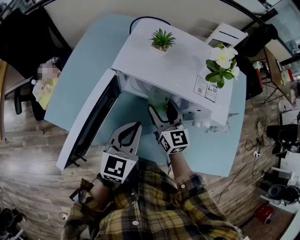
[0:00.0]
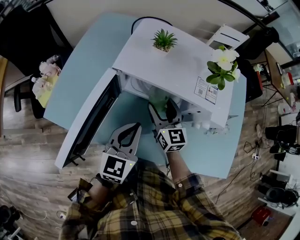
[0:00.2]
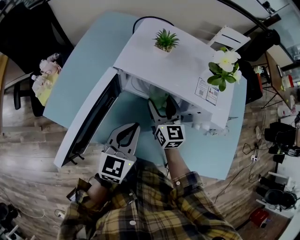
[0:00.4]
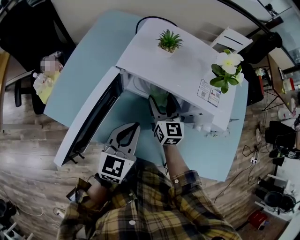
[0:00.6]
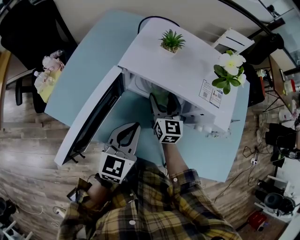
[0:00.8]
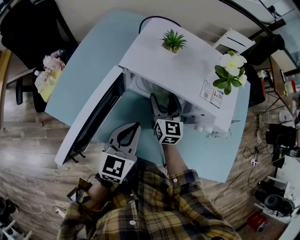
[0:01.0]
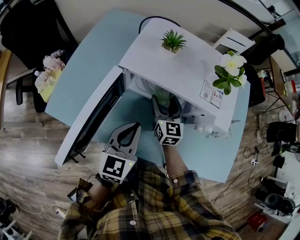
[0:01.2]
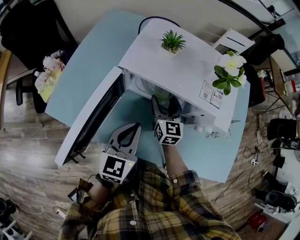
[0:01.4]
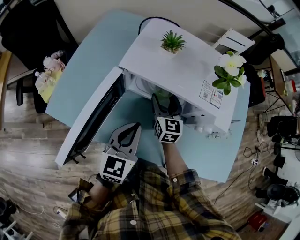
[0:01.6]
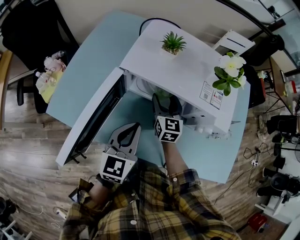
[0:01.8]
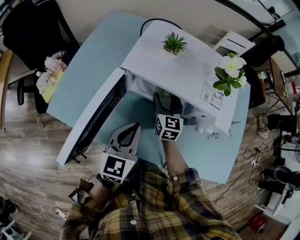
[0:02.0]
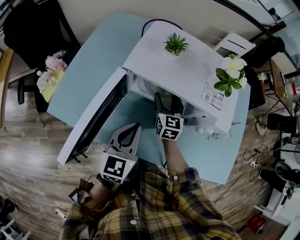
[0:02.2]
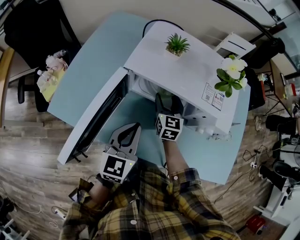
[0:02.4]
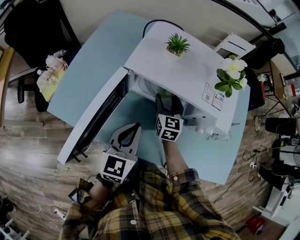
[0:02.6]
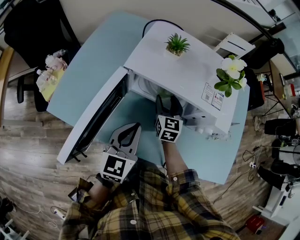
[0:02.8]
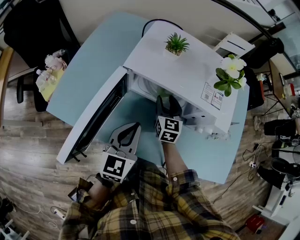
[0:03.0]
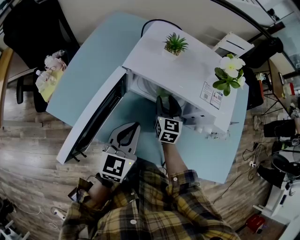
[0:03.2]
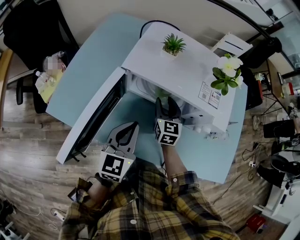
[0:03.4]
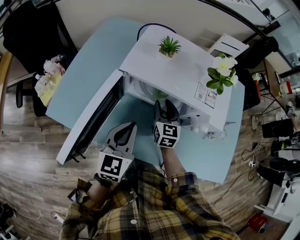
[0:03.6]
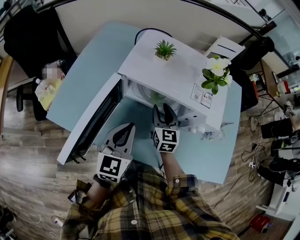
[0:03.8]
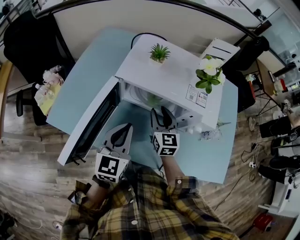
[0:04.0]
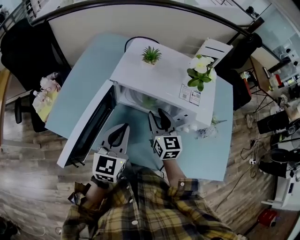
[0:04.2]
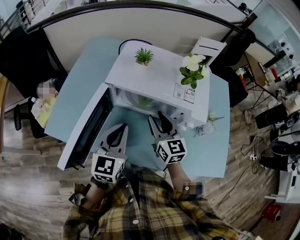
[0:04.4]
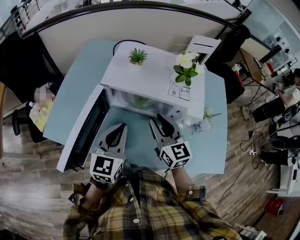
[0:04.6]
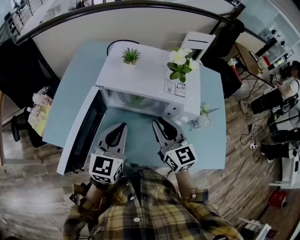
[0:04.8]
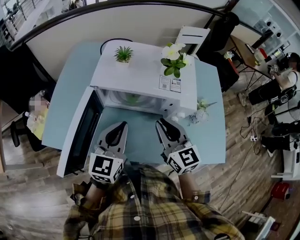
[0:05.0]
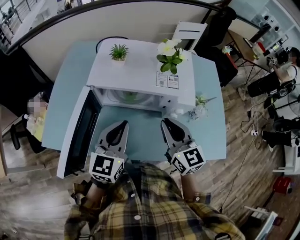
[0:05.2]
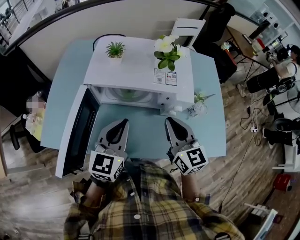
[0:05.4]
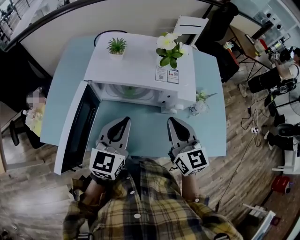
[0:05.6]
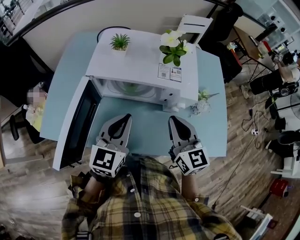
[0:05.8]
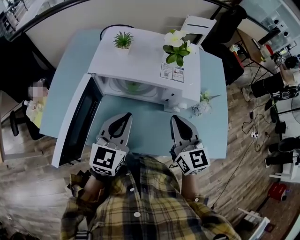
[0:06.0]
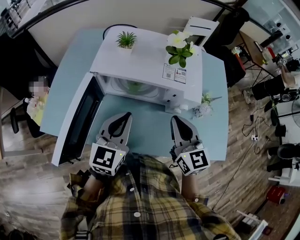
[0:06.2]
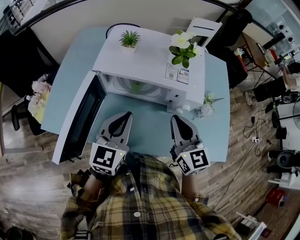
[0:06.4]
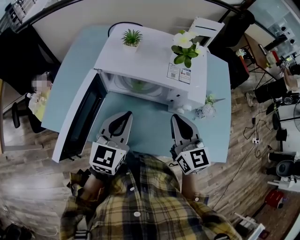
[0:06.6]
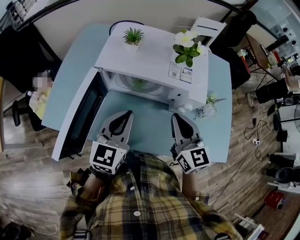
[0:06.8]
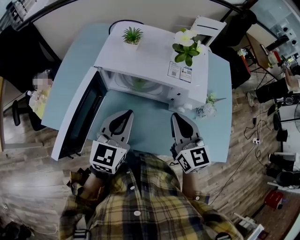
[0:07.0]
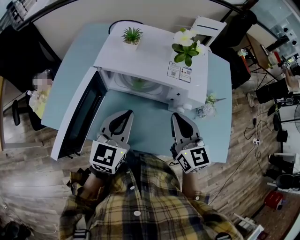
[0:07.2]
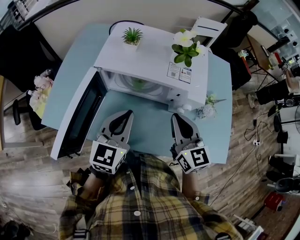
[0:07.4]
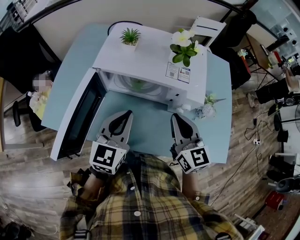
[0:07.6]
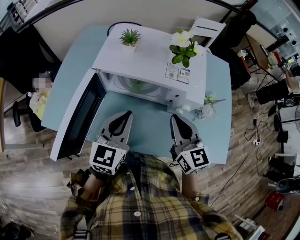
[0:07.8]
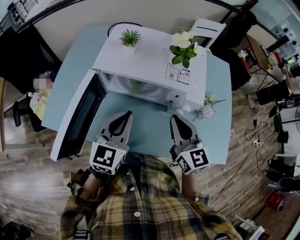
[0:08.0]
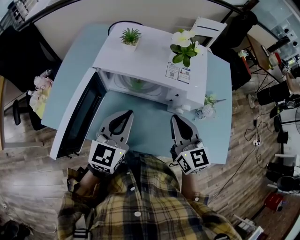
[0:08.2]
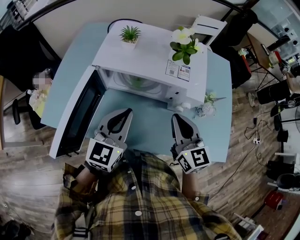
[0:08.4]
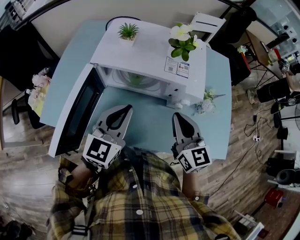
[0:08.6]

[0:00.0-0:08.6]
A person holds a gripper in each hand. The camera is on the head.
0:00.0 to 0:01.4: The right gripper ends up roughly 5 cm from where it was.
0:01.4 to 0:02.8: There are only small adjustments of the grippers.
0:02.8 to 0:04.4: The left gripper shifts roughly 5 cm upward. Meanwhile the right gripper goes roughly 15 cm upward and backward.
0:04.4 to 0:05.8: The left gripper shifts some 5 cm to the right, while the right gripper travels to the right, backward and upward by approximately 15 cm, and closes up.
0:05.8 to 0:08.6: The grippers make only small movements.

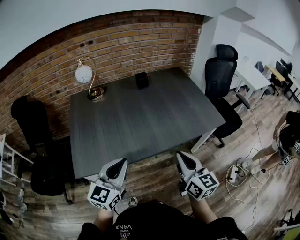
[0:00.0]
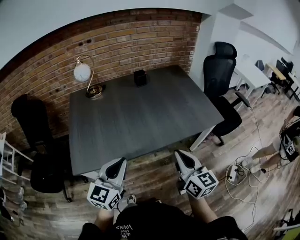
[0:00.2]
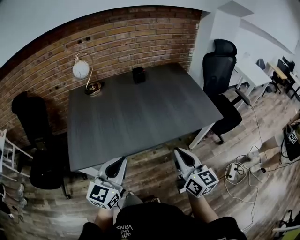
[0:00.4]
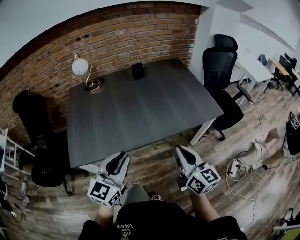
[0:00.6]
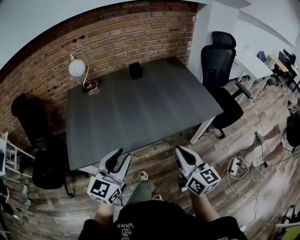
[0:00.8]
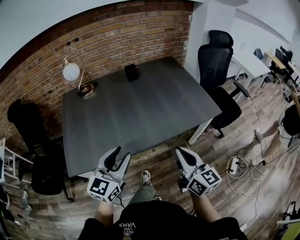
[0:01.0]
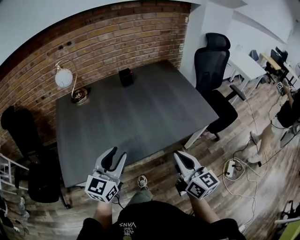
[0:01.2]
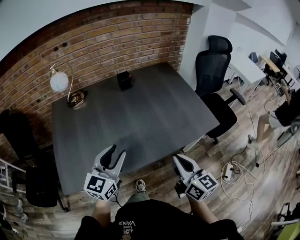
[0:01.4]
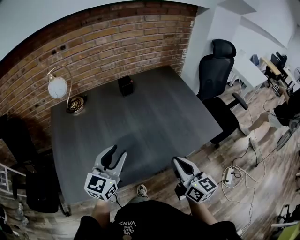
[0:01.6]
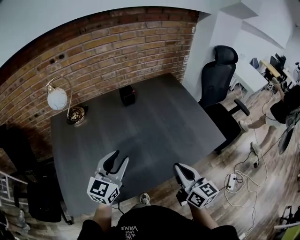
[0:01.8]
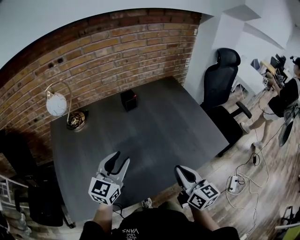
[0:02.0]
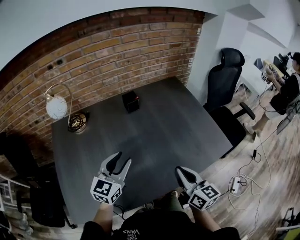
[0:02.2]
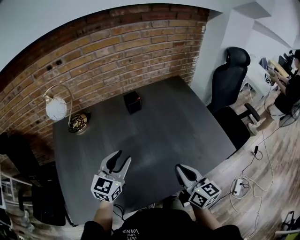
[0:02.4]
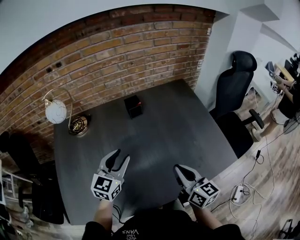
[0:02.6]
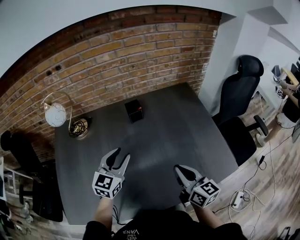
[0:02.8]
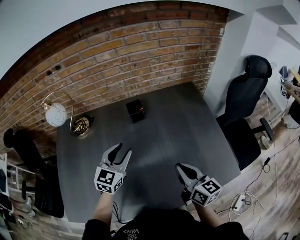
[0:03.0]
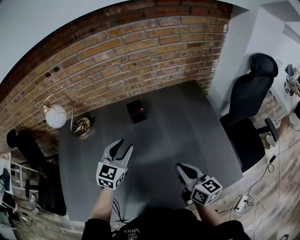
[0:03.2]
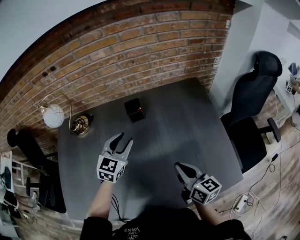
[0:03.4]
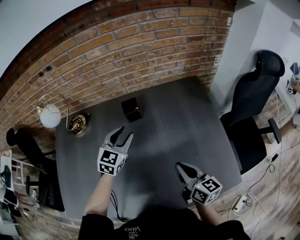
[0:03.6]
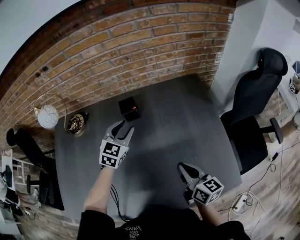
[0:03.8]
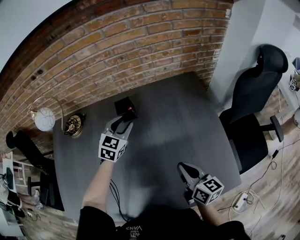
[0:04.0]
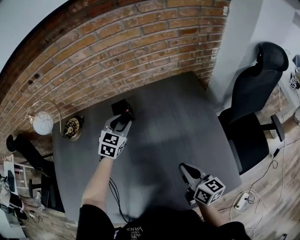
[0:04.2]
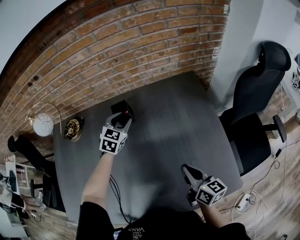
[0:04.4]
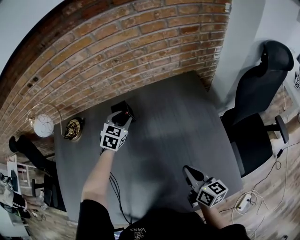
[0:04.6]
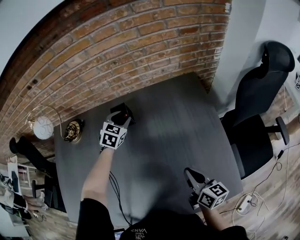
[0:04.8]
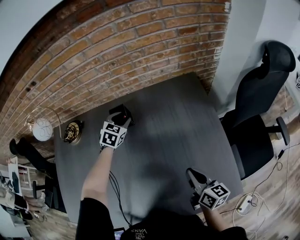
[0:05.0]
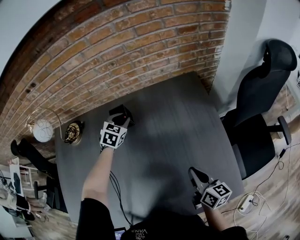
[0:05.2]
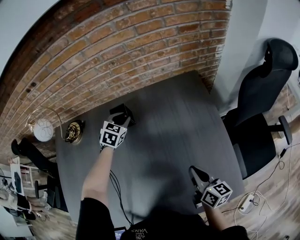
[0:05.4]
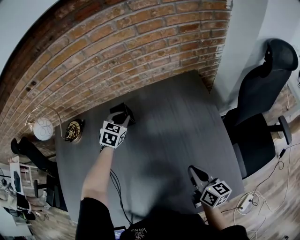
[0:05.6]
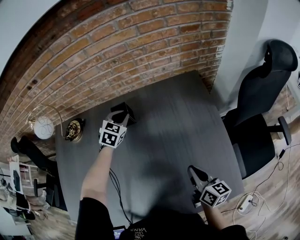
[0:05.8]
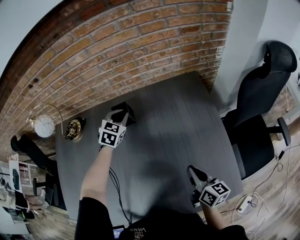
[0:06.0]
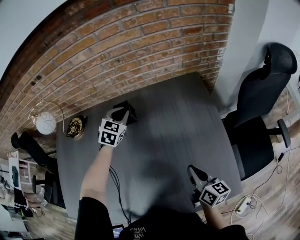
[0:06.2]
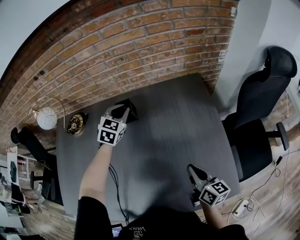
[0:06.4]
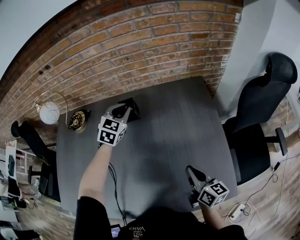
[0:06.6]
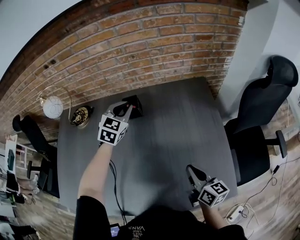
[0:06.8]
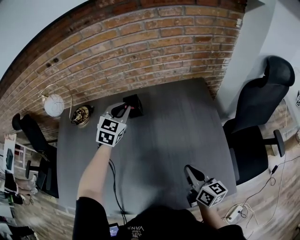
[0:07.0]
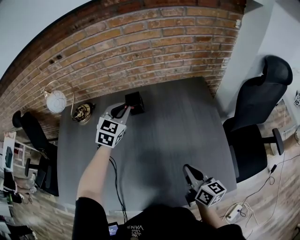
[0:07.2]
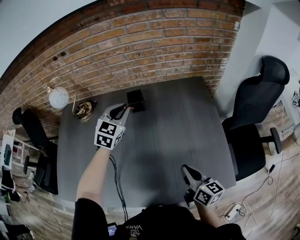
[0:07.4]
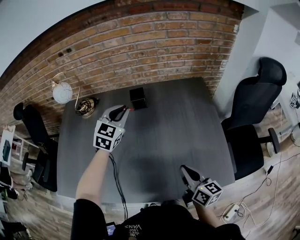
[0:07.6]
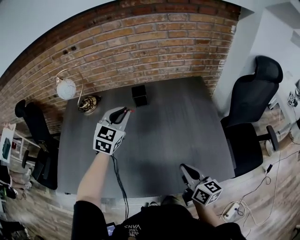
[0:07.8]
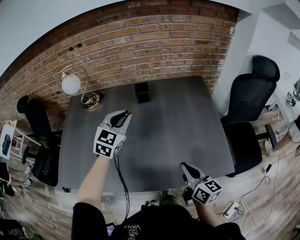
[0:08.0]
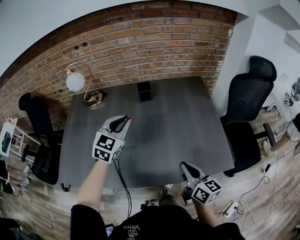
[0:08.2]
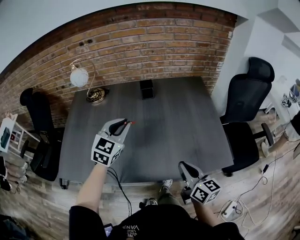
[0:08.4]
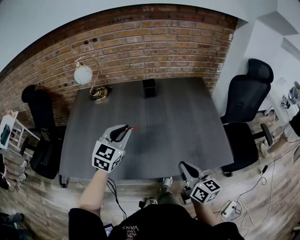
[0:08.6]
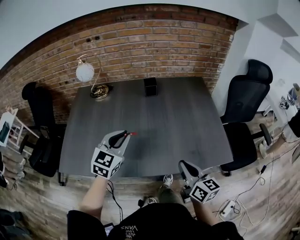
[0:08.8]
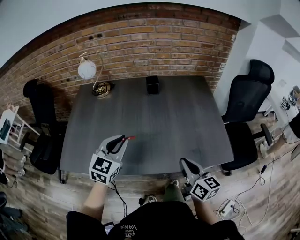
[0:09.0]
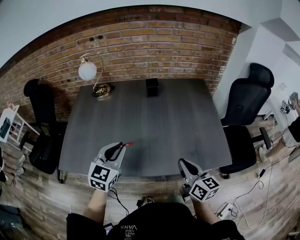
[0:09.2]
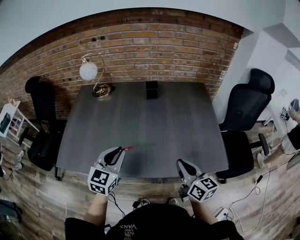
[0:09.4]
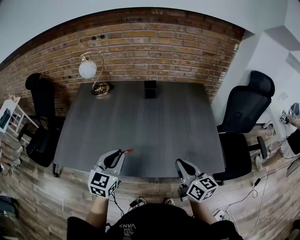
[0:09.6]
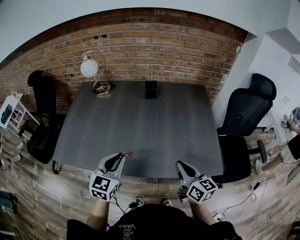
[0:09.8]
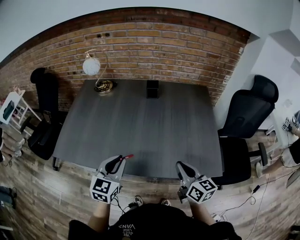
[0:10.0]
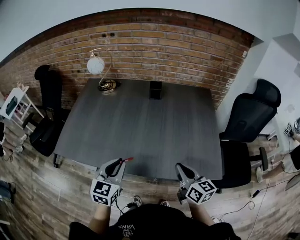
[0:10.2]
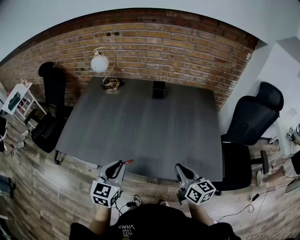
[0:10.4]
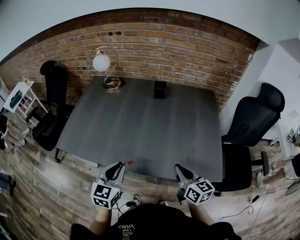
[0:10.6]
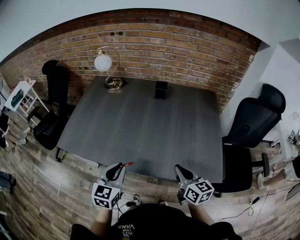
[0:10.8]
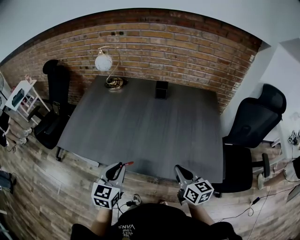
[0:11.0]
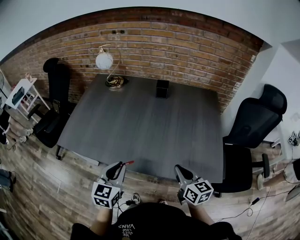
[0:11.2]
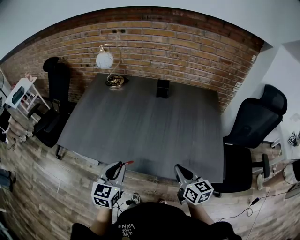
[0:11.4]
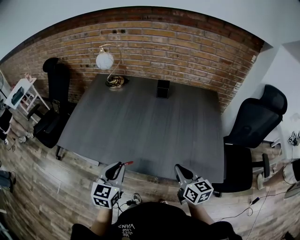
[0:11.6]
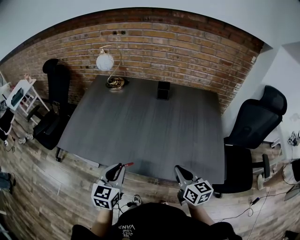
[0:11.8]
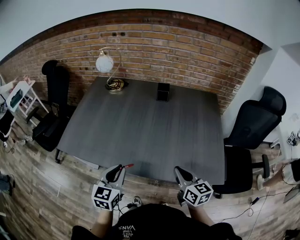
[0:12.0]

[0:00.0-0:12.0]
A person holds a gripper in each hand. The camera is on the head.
0:00.0 to 0:01.6: The left gripper travels forward by roughly 20 cm, and opens; the right gripper is displaced forward by some 15 cm.
0:01.6 to 0:03.0: The grippers both shift forward by roughly 25 cm.
0:03.0 to 0:04.4: The left gripper travels forward, downward and to the right by roughly 25 cm, and turns by about 20 degrees, while the right gripper is displaced to the right, downward and forward by approximately 15 cm.
0:04.4 to 0:06.0: There are only small adjustments of the grippers.
0:06.0 to 0:07.6: The right gripper moves backward, to the left and upward, approximately 15 cm; the left gripper is displaced backward and upward by roughly 20 cm.
0:07.6 to 0:09.0: The right gripper shifts about 15 cm backward and to the left, while the left gripper goes roughly 30 cm backward.
0:09.0 to 0:10.4: The right gripper goes some 5 cm to the right, while the left gripper goes some 10 cm backward, and turns by roughly 20 degrees.
0:10.4 to 0:12.0: There are only small adjustments of the grippers.

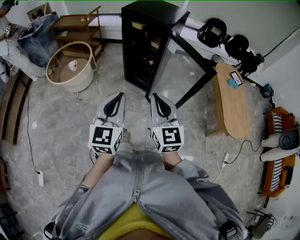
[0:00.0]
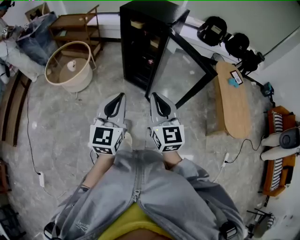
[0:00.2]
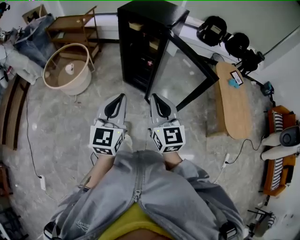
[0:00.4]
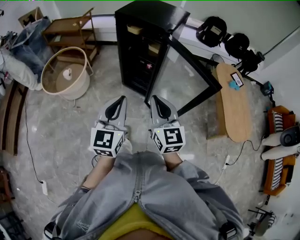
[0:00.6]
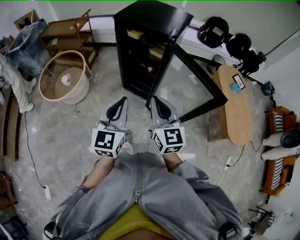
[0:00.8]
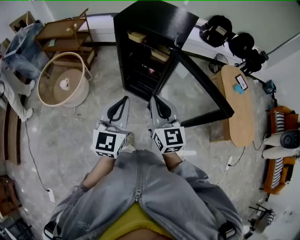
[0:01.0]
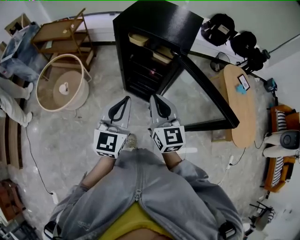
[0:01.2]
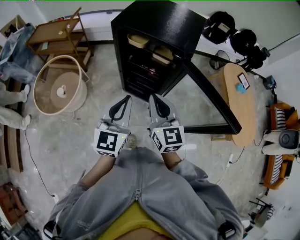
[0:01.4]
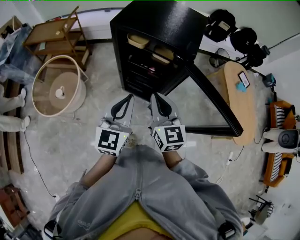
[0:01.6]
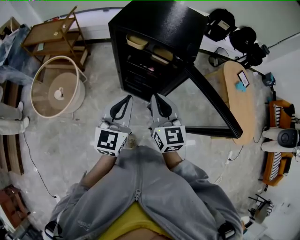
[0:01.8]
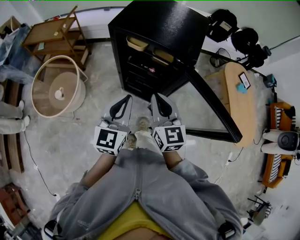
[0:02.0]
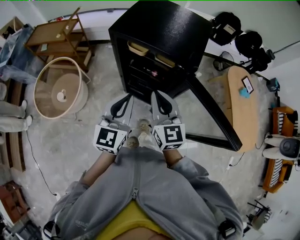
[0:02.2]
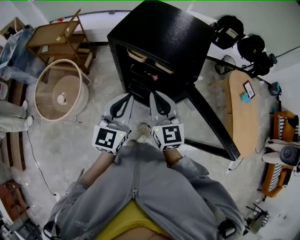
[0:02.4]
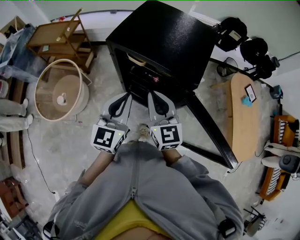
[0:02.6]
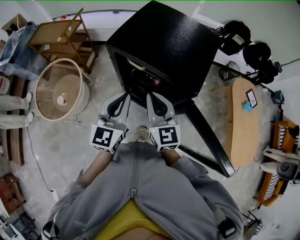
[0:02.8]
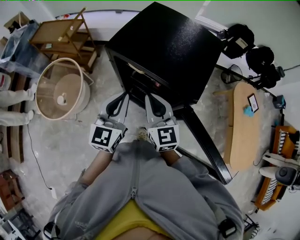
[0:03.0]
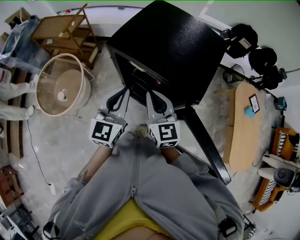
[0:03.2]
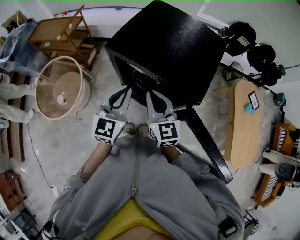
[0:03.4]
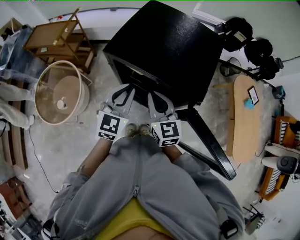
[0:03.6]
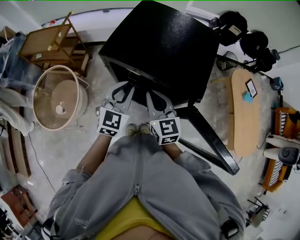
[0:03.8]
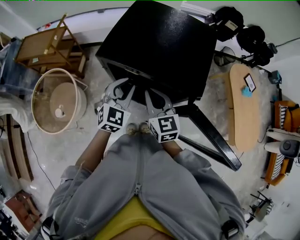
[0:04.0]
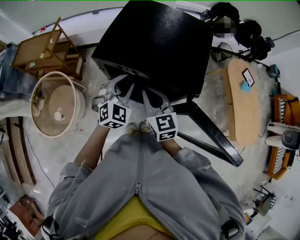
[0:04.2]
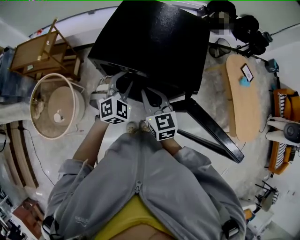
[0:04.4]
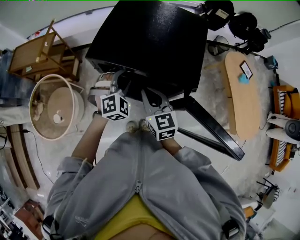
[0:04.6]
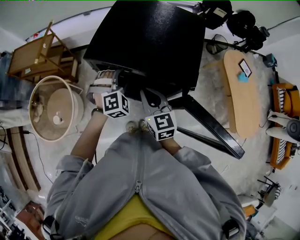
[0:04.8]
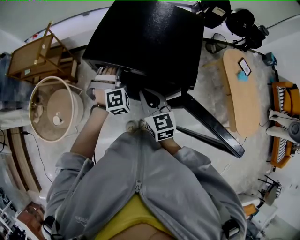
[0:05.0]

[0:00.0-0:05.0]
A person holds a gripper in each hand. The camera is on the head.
0:00.0 to 0:01.6: Both grippers travel together forward, approximately 35 cm.
0:01.6 to 0:03.4: Both grippers move forward, about 20 cm.
0:03.4 to 0:05.0: The left gripper goes approximately 15 cm downward and forward, twists some 70 degrees clockwise, seen from behind, and opens its fingers.
